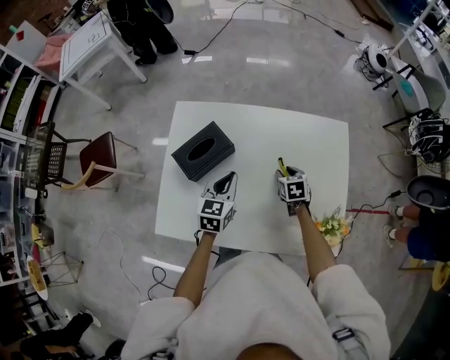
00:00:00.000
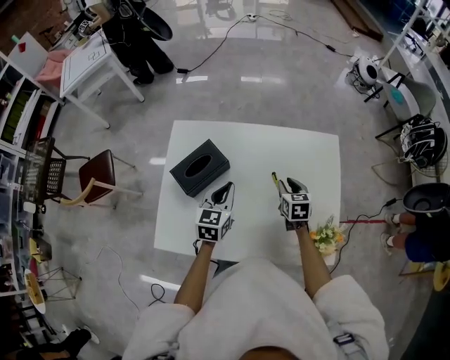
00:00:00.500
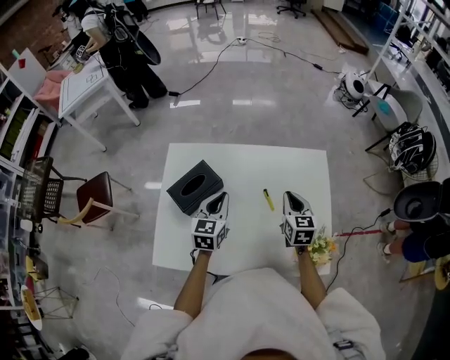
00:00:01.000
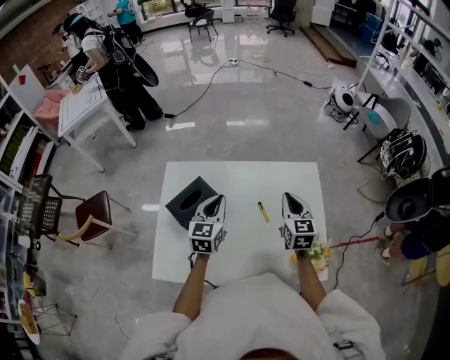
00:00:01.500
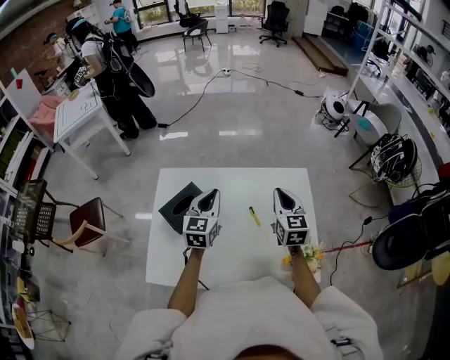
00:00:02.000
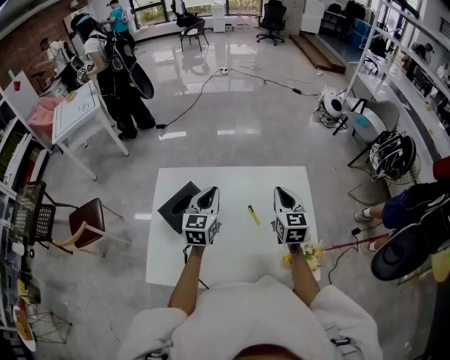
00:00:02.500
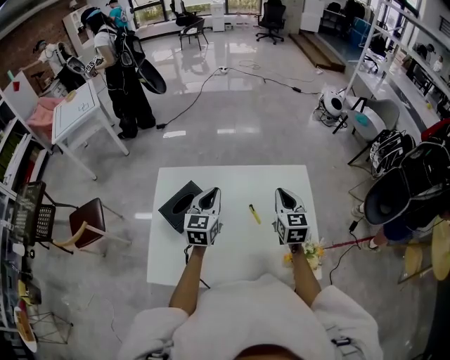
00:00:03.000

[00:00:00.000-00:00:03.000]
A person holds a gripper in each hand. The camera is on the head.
00:00:00.000 to 00:00:01.500: The right gripper heads upward, covering approximately 25 cm, tilts its fingers approximately 40 degrees upward, and closes its fingers, while the left gripper shifts roughly 10 cm upward and forward.
00:00:01.500 to 00:00:03.000: The grippers stay close to where they were, moving slightly.

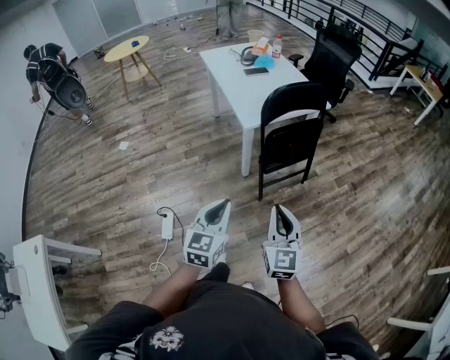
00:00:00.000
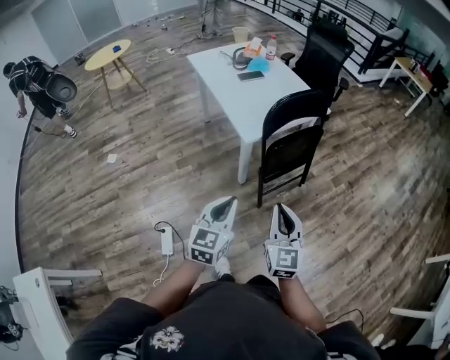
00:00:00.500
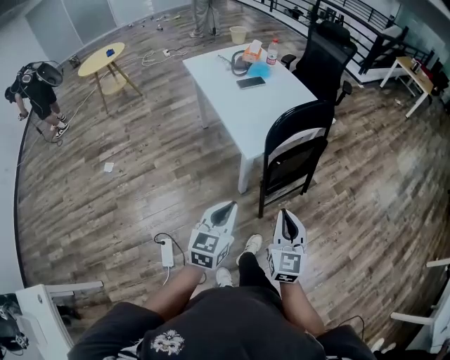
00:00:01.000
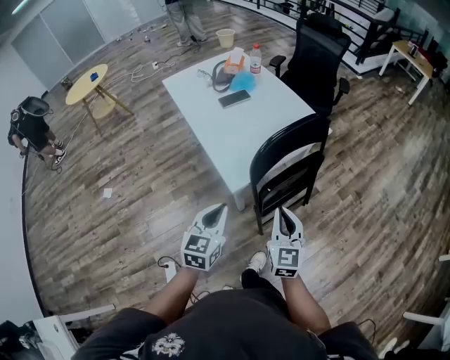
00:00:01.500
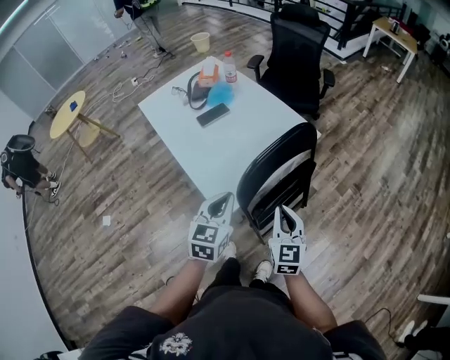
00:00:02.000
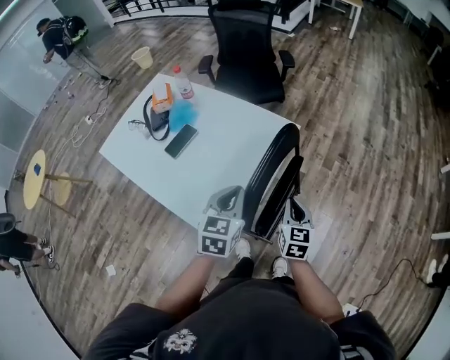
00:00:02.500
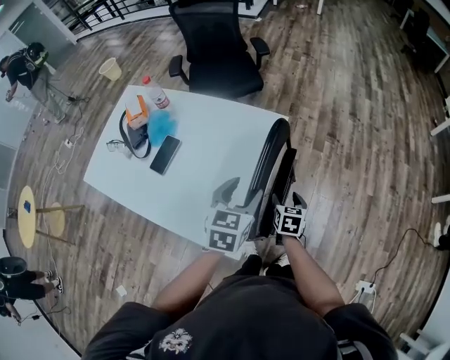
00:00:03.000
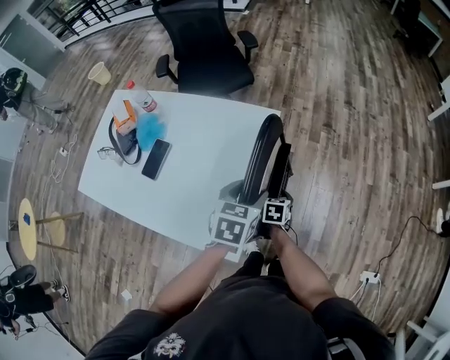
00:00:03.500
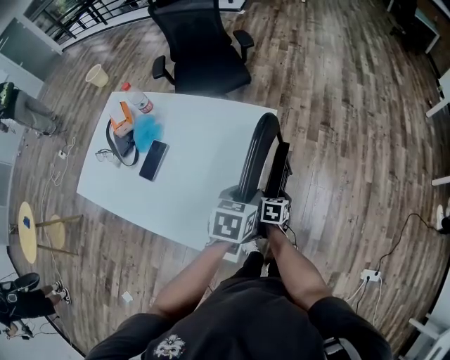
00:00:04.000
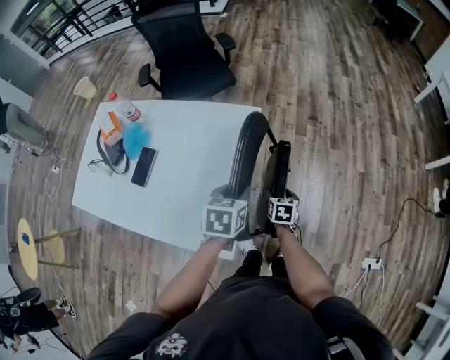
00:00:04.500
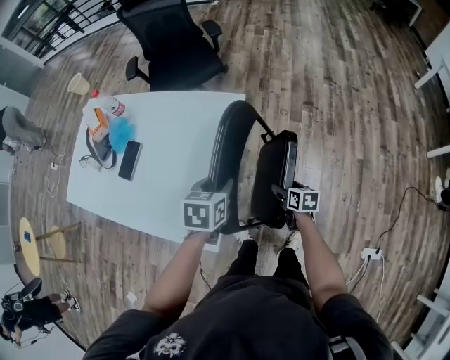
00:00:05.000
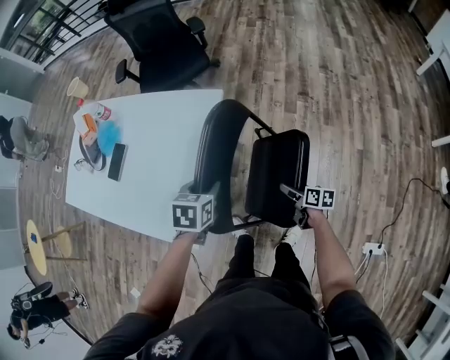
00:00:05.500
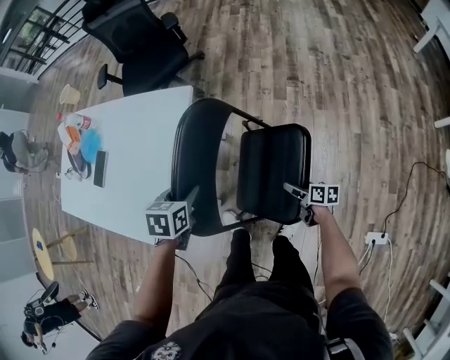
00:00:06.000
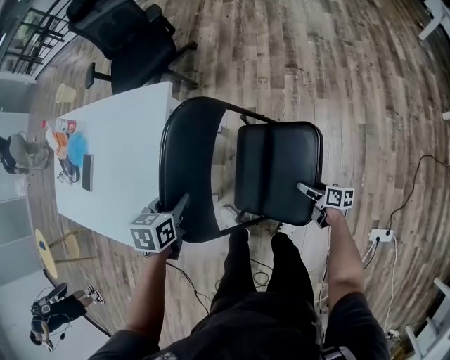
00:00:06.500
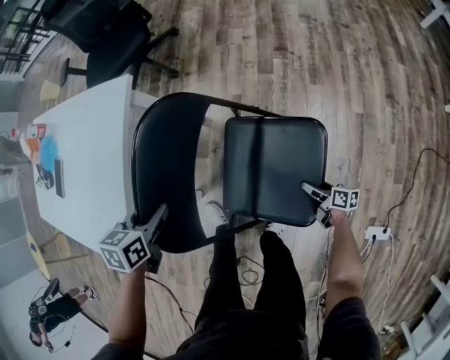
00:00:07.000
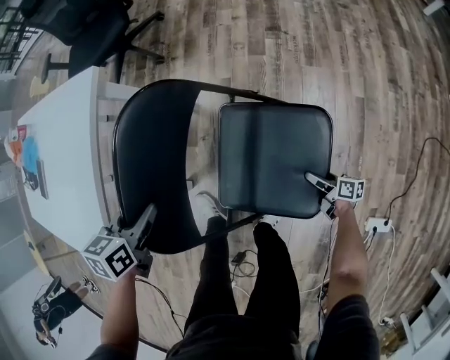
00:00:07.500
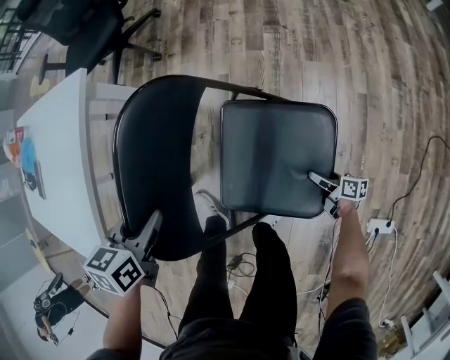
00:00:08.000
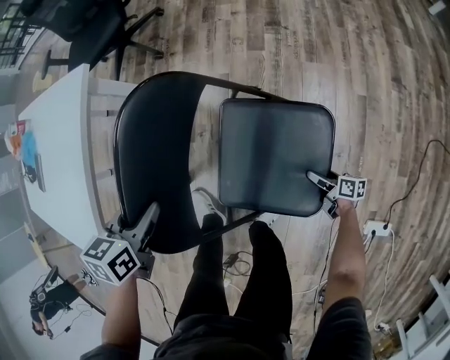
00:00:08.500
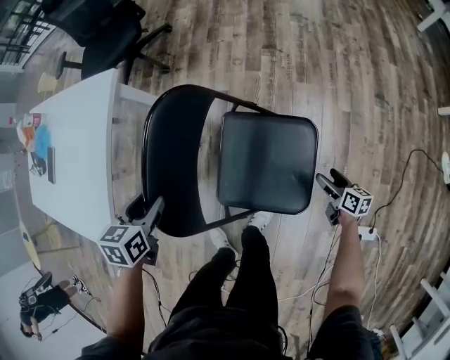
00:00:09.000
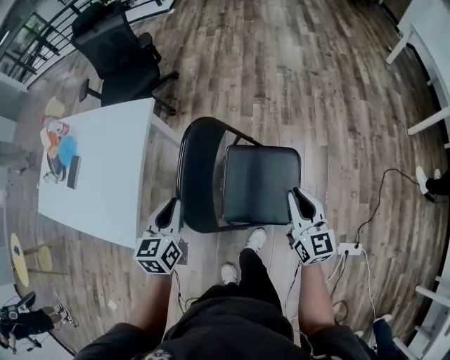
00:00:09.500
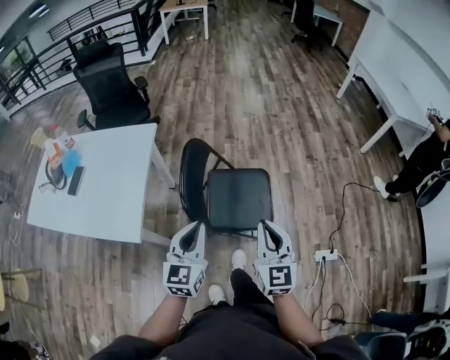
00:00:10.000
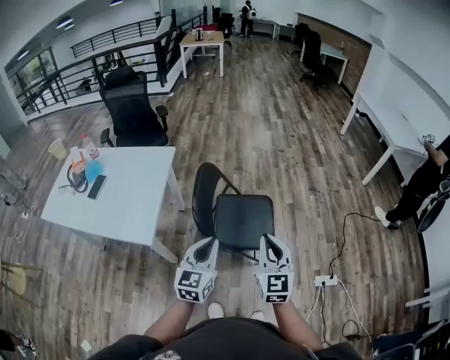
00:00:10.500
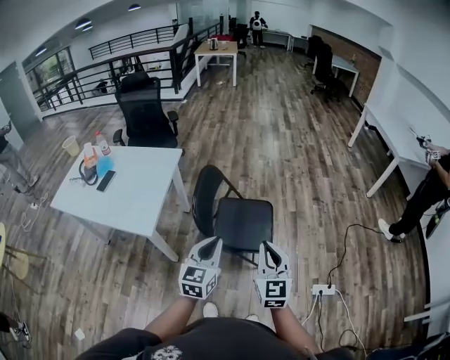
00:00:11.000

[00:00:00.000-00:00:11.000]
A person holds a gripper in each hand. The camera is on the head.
00:00:00.000 to 00:00:02.000: The two grippers travel together, forward, about 50 cm.
00:00:02.000 to 00:00:03.500: The right gripper shifts approximately 25 cm downward, tilts its fingers about 40 degrees downward, and opens its fingers, while the left gripper changes place by about 20 cm, turns by about 40 degrees, and opens up.
00:00:03.500 to 00:00:05.500: The left gripper travels to the right and downward by roughly 10 cm, and closes its fingers. The right gripper goes about 25 cm to the right, and rotates roughly 40 degrees.
00:00:05.500 to 00:00:07.500: The left gripper is displaced downward and to the right by some 20 cm; the right gripper travels to the right and downward by approximately 40 cm.
00:00:07.500 to 00:00:09.000: The left gripper shifts by about 5 cm, while the right gripper heads upward and to the right, covering approximately 15 cm, and turns by some 20 degrees.
00:00:09.000 to 00:00:11.000: The left gripper shifts approximately 50 cm backward and upward, points its fingers about 40 degrees further upward, and closes, while the right gripper travels upward and backward by roughly 70 cm, changes its angle by some 70 degrees, and closes up.

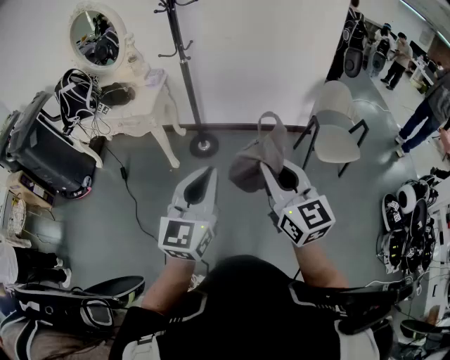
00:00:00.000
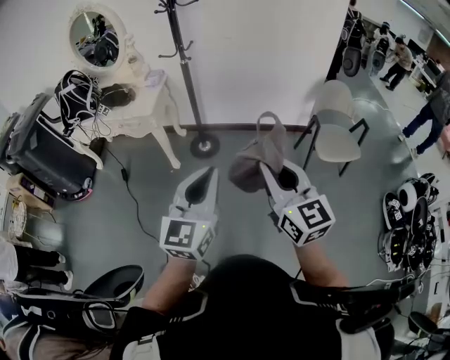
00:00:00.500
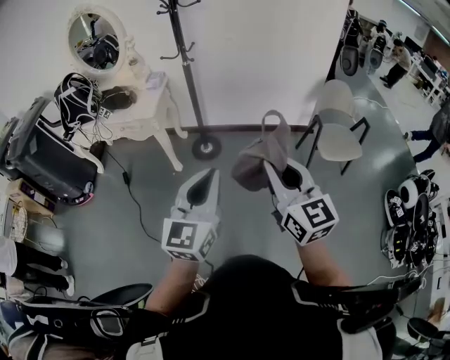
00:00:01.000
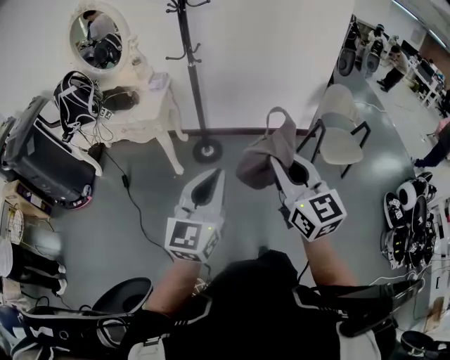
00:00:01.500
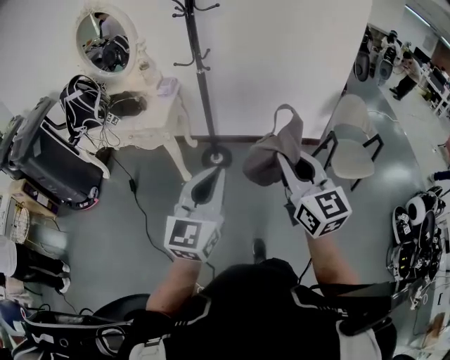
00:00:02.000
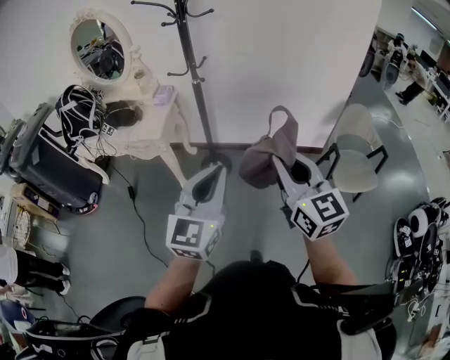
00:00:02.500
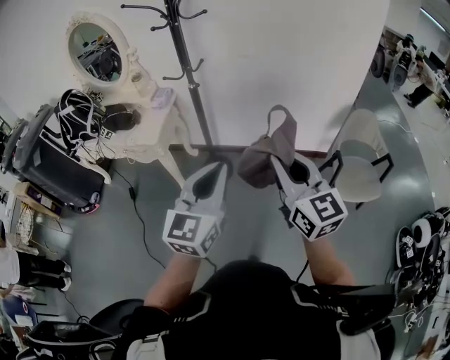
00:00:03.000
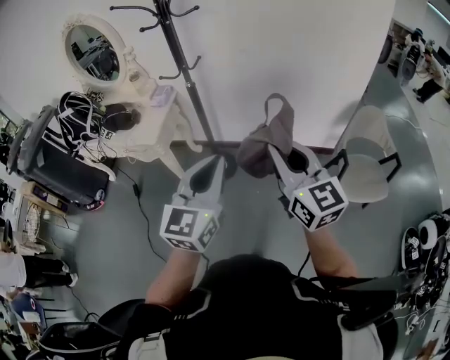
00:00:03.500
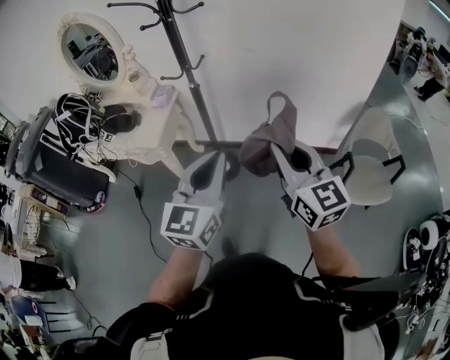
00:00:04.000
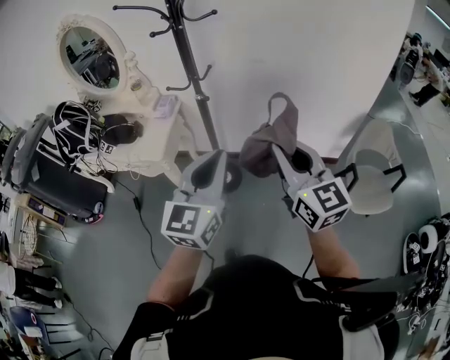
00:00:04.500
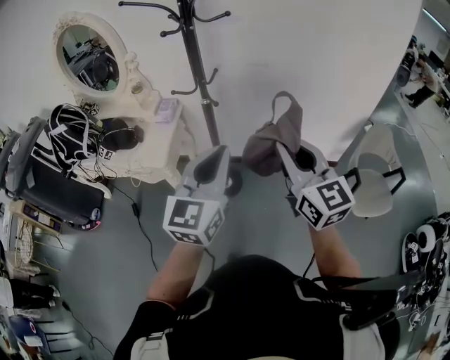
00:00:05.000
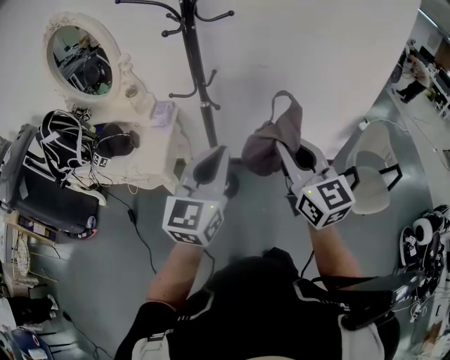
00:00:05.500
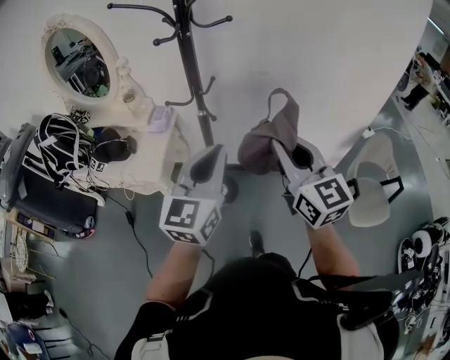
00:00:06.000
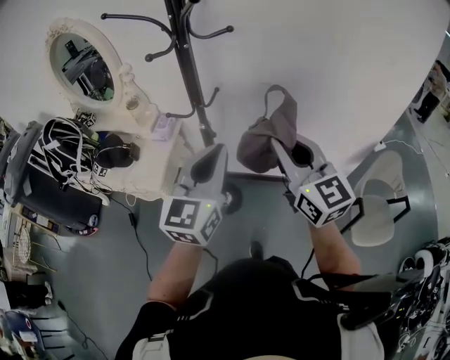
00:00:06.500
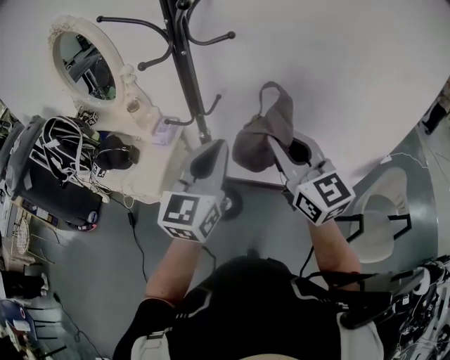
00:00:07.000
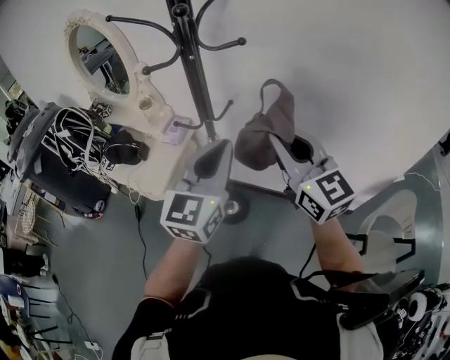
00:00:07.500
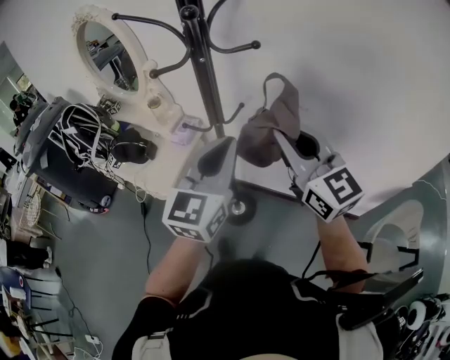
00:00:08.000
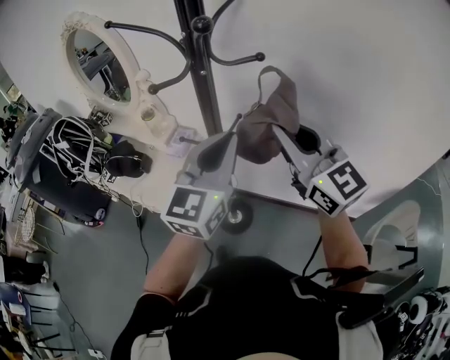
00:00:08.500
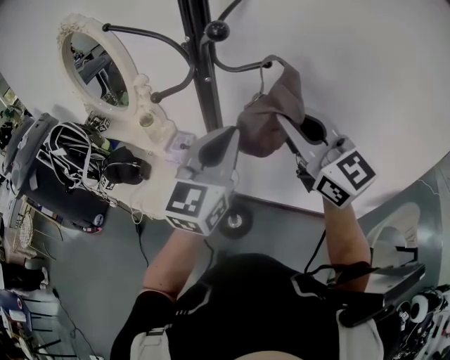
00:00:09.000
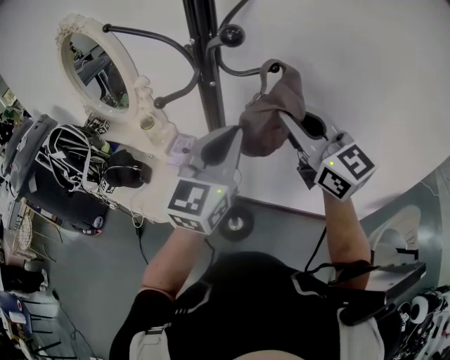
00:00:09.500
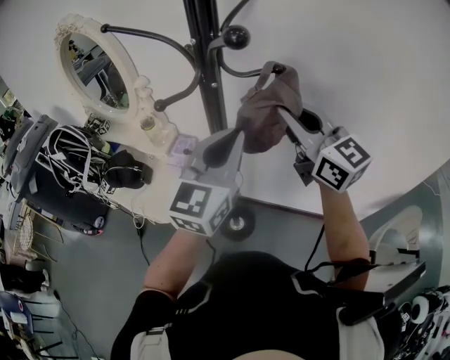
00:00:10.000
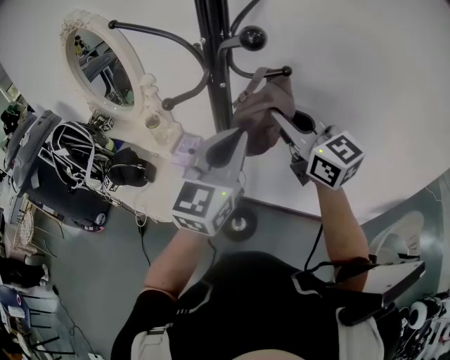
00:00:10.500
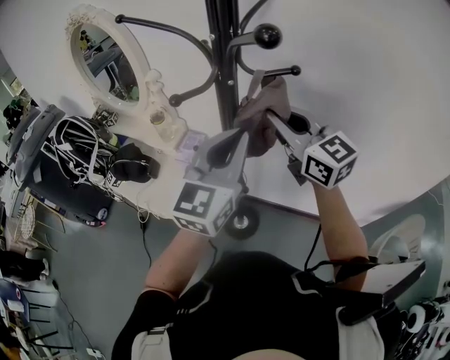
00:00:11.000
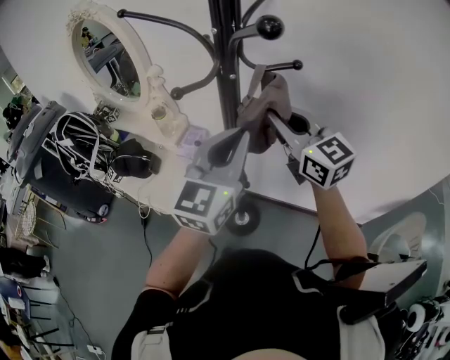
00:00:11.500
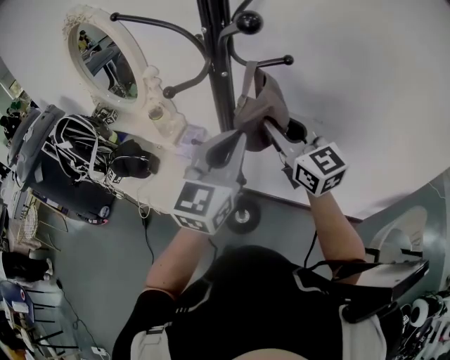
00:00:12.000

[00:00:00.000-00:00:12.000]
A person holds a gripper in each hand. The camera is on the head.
00:00:00.000 to 00:00:02.000: Both grippers travel together forward and to the left, roughly 10 cm.
00:00:02.000 to 00:00:04.000: Both grippers move forward, roughly 25 cm.
00:00:04.000 to 00:00:06.000: The grippers both shift forward and to the left by approximately 20 cm.
00:00:06.000 to 00:00:08.000: Both grippers move forward, some 20 cm. The right gripper changes its angle by some 20 degrees.
00:00:08.000 to 00:00:10.000: Both grippers move forward, approximately 10 cm.
00:00:10.000 to 00:00:12.000: The right gripper is displaced downward by some 5 cm.
